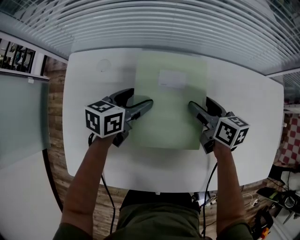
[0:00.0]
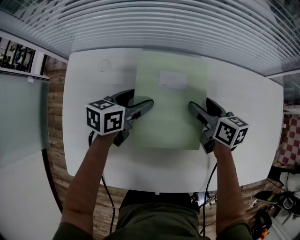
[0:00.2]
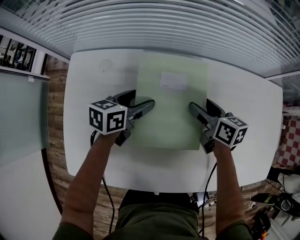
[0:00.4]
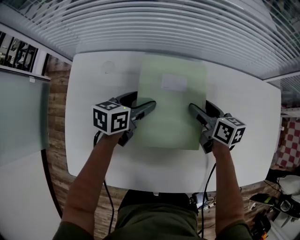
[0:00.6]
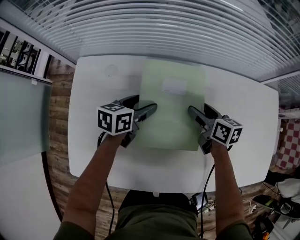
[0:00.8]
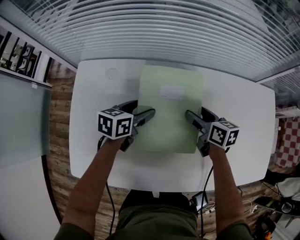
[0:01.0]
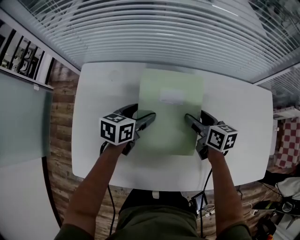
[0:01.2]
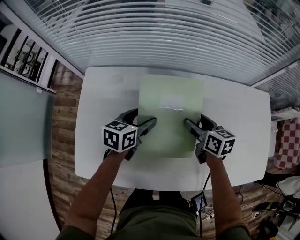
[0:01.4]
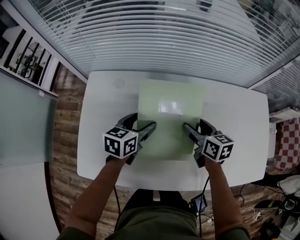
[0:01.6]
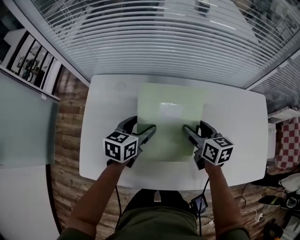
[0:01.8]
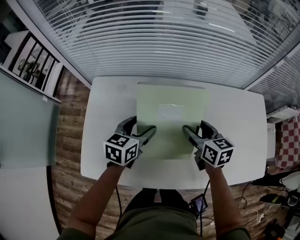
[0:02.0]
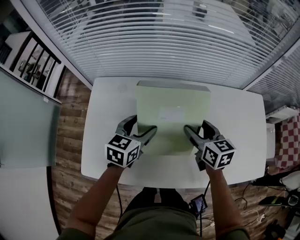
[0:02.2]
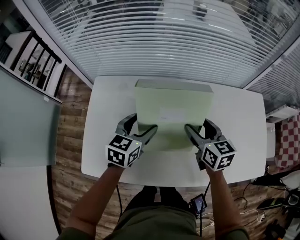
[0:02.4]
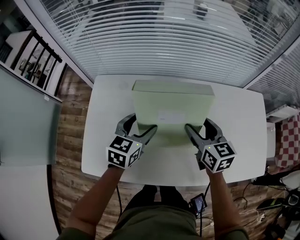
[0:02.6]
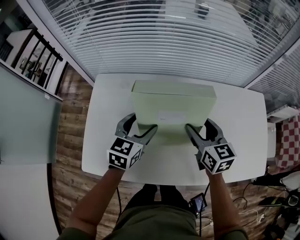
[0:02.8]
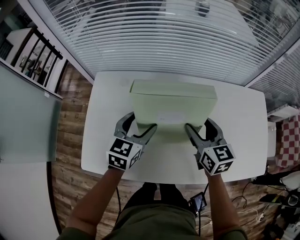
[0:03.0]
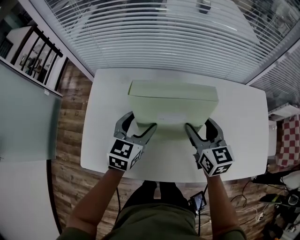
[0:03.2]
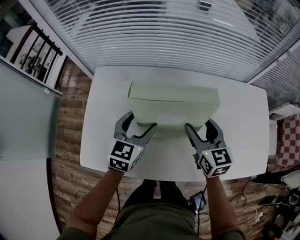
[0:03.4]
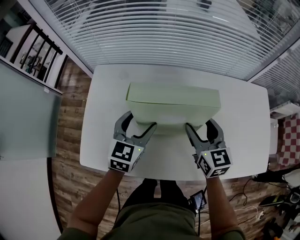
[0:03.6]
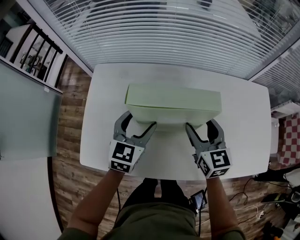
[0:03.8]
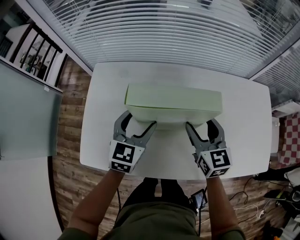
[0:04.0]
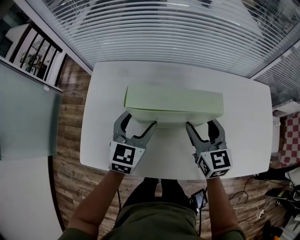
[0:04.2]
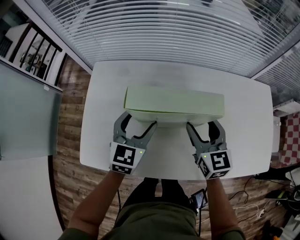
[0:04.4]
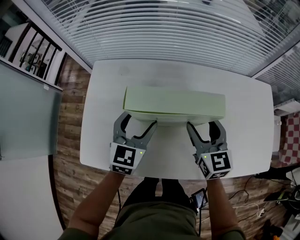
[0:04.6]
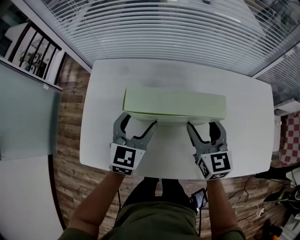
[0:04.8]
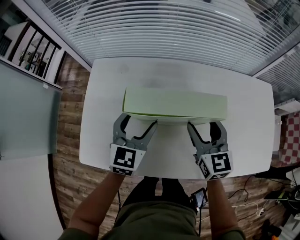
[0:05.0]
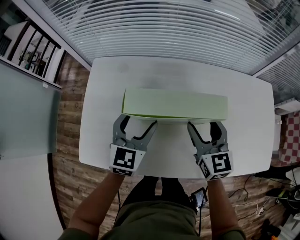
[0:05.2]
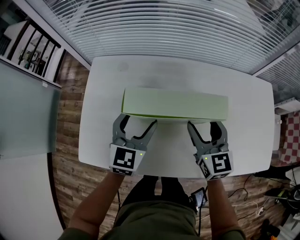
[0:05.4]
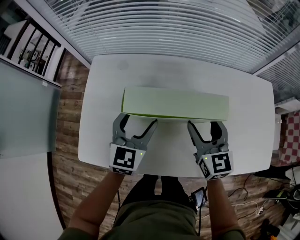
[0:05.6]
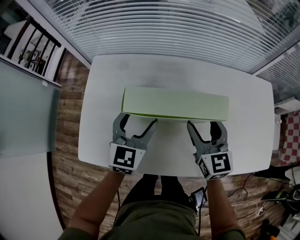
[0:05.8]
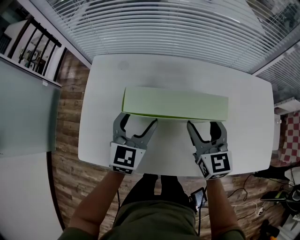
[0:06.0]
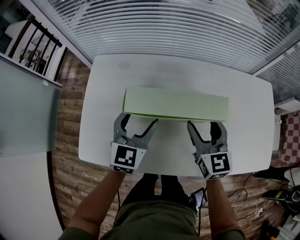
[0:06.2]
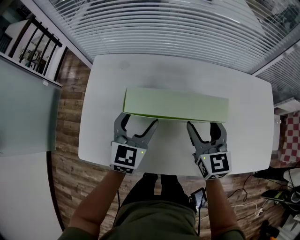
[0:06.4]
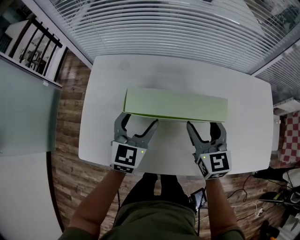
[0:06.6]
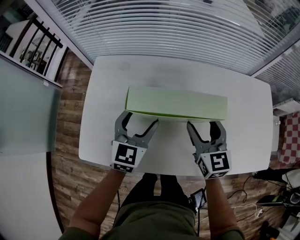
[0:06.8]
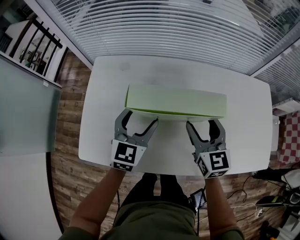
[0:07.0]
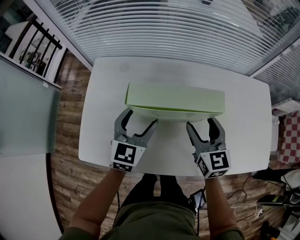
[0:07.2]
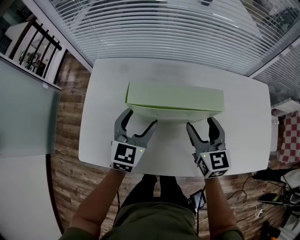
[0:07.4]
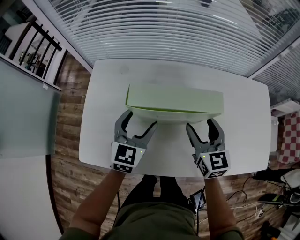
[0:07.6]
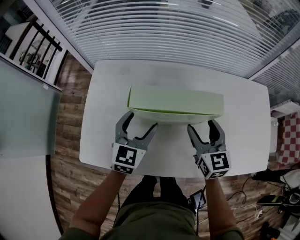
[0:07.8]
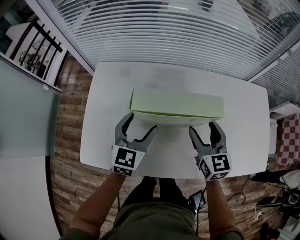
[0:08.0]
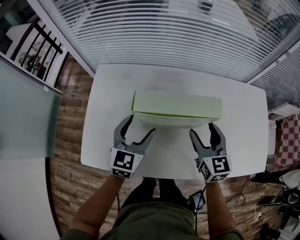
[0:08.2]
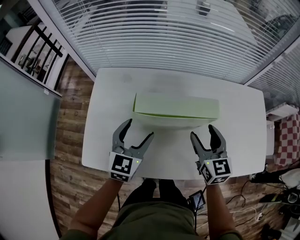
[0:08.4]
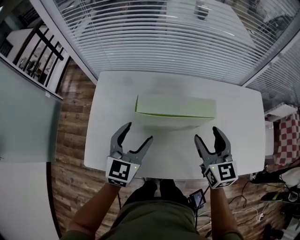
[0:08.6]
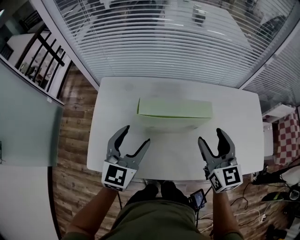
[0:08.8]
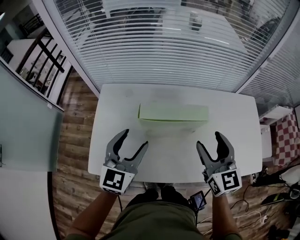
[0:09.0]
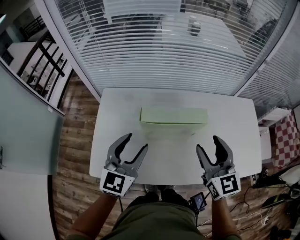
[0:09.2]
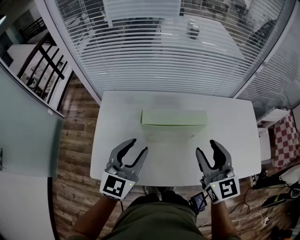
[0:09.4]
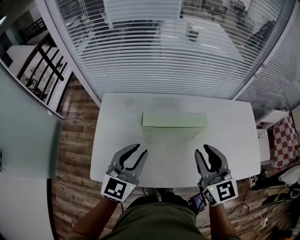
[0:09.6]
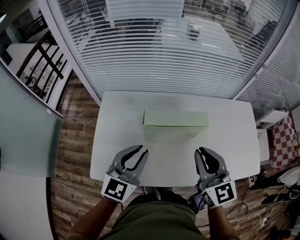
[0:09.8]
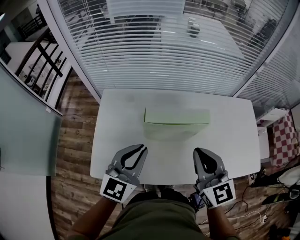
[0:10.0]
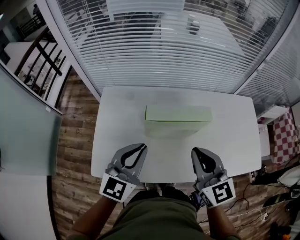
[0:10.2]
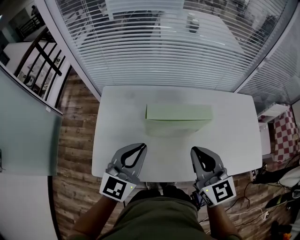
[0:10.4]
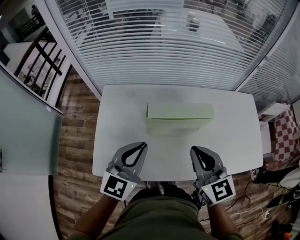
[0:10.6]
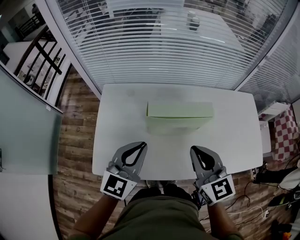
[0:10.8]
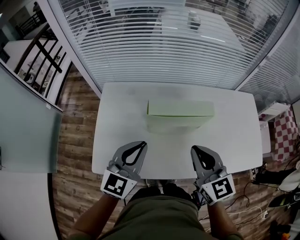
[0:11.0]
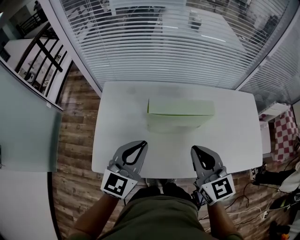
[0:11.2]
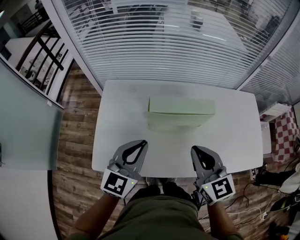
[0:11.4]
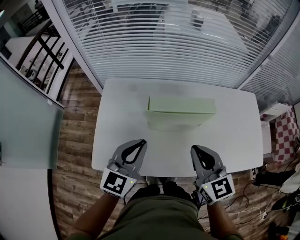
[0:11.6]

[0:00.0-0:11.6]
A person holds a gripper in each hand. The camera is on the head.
0:00.0 to 0:01.4: The left gripper shifts some 5 cm backward, while the right gripper shifts by about 5 cm.
0:01.4 to 0:02.8: Both grippers travel together upward and backward, approximately 10 cm. The right gripper rotates approximately 20 degrees. The left gripper changes its angle by approximately 20 degrees.
0:02.8 to 0:04.4: There are only small adjustments of the grippers.
0:04.4 to 0:05.8: Neither gripper changes place.
0:05.8 to 0:07.2: Both grippers stay about where they are.
0:07.2 to 0:08.8: The left gripper is displaced upward and backward by approximately 10 cm. Meanwhile the right gripper travels upward by about 10 cm.
0:08.8 to 0:10.2: The right gripper is displaced to the left and backward by approximately 10 cm, and closes up, while the left gripper is displaced upward by roughly 5 cm, and closes its fingers.
0:10.2 to 0:11.6: There are only small adjustments of the grippers.

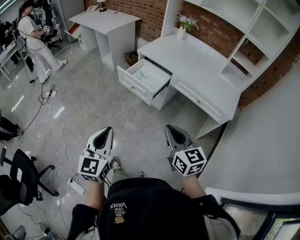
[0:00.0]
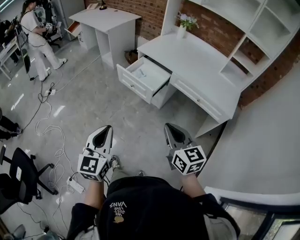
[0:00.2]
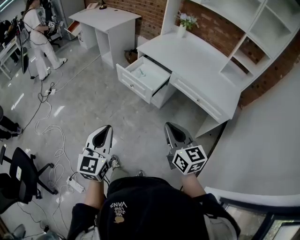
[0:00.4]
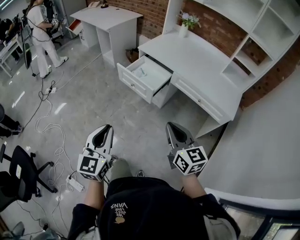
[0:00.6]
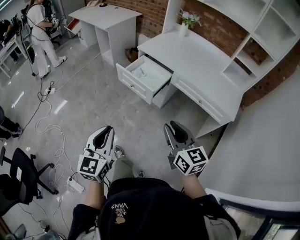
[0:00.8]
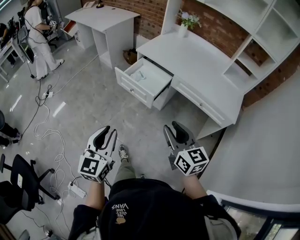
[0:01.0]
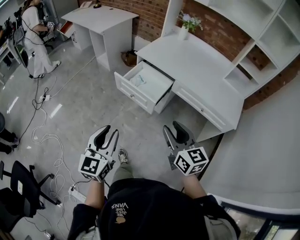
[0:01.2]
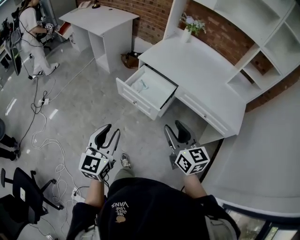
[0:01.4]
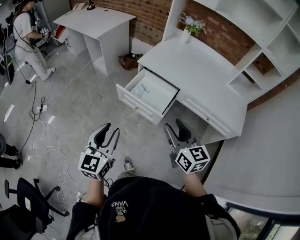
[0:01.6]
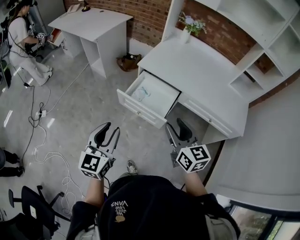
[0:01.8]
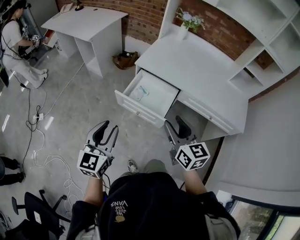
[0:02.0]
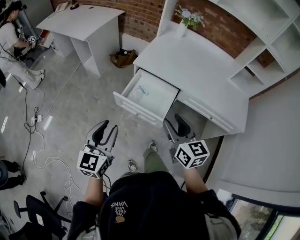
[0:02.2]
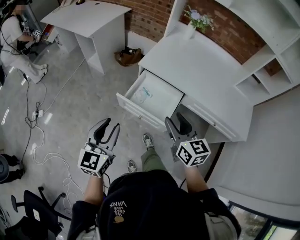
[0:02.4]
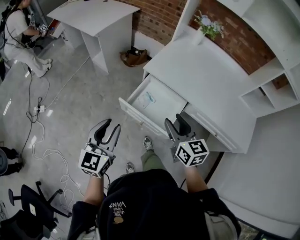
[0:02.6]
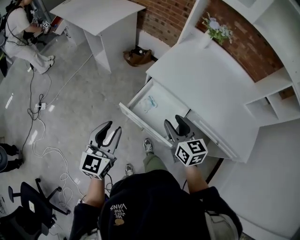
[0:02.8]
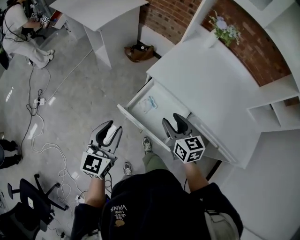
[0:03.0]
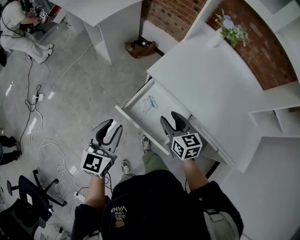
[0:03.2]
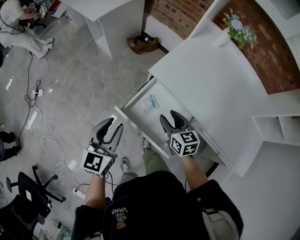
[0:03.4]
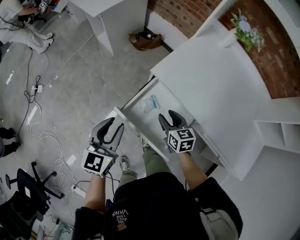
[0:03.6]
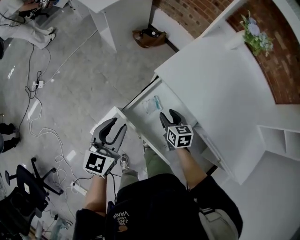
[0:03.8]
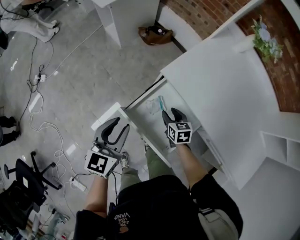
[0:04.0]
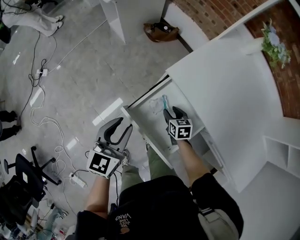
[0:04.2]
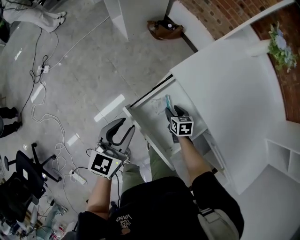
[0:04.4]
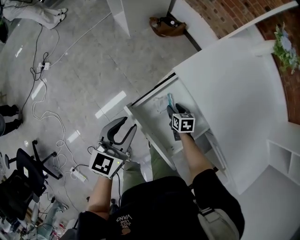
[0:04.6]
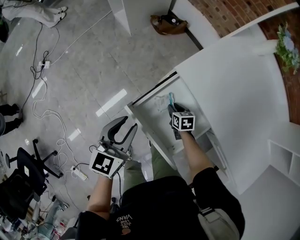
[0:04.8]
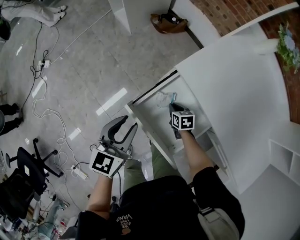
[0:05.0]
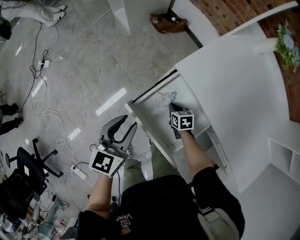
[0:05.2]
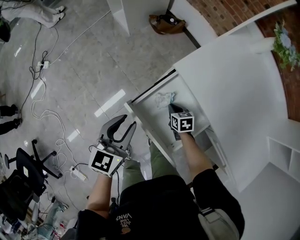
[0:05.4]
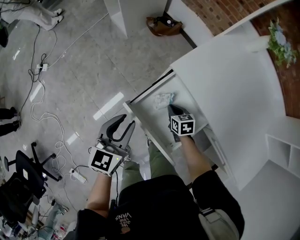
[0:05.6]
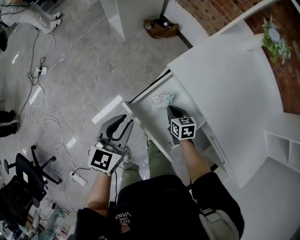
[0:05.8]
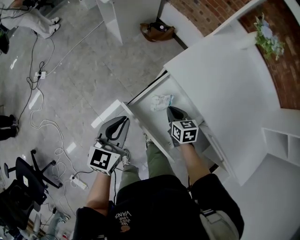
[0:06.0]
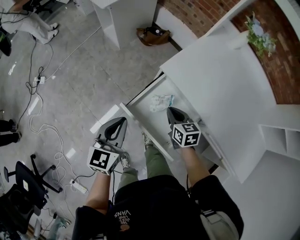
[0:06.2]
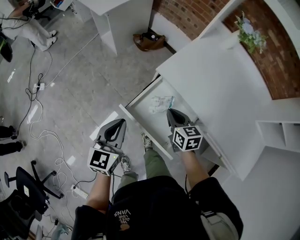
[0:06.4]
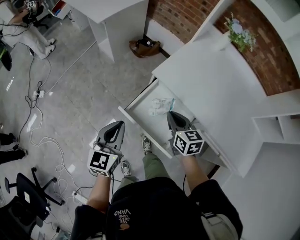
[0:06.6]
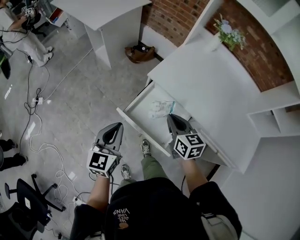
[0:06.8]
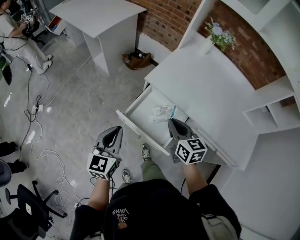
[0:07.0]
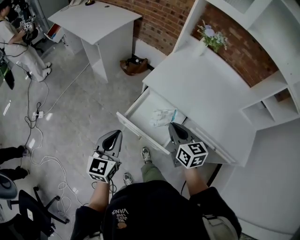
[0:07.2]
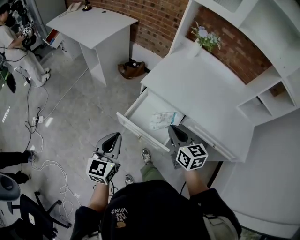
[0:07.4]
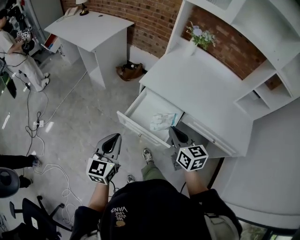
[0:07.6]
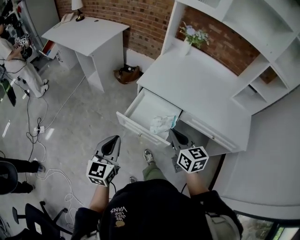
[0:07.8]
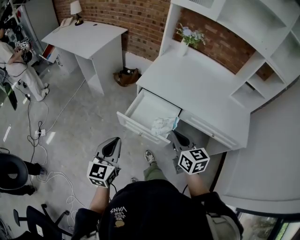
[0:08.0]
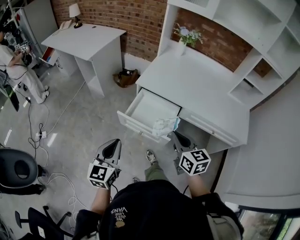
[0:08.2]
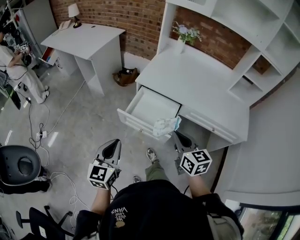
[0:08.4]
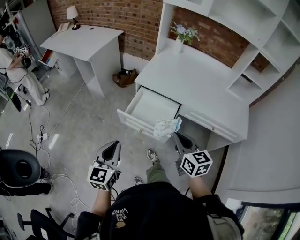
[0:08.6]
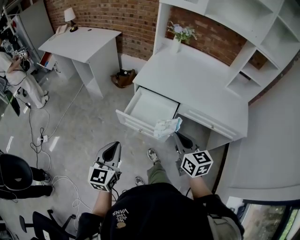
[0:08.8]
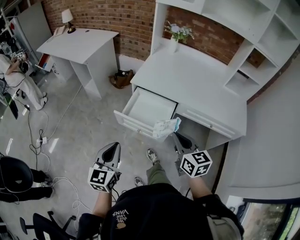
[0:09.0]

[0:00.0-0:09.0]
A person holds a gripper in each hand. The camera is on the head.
0:00.0 to 0:01.6: Both grippers move forward, some 25 cm. The left gripper opens. The right gripper opens.
0:01.6 to 0:03.0: The right gripper moves forward and downward, roughly 35 cm; the left gripper shifts about 25 cm forward.
0:03.0 to 0:04.4: The right gripper travels downward and forward by roughly 35 cm, and changes its angle by some 30 degrees; the left gripper is displaced downward and forward by about 15 cm.
0:04.4 to 0:06.0: The right gripper travels upward by about 10 cm, and closes up. Meanwhile the left gripper closes.
0:06.0 to 0:07.6: The right gripper is displaced upward and backward by about 35 cm, and changes its angle by about 30 degrees. The left gripper moves backward and upward, some 20 cm.
0:07.6 to 0:09.0: Both grippers travel together backward, about 10 cm.

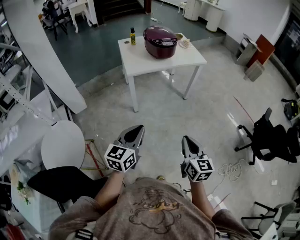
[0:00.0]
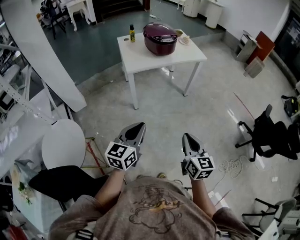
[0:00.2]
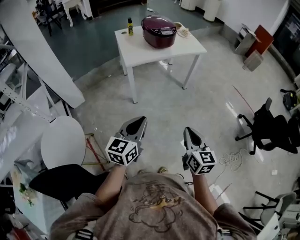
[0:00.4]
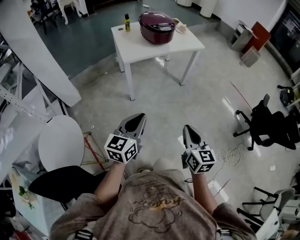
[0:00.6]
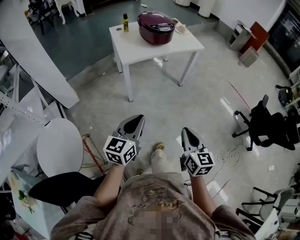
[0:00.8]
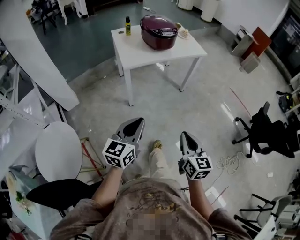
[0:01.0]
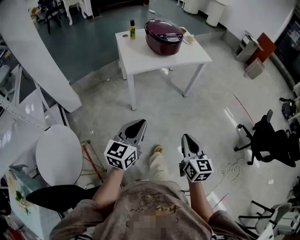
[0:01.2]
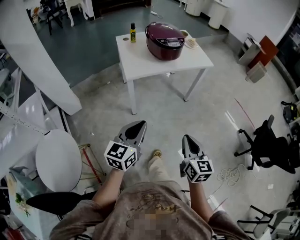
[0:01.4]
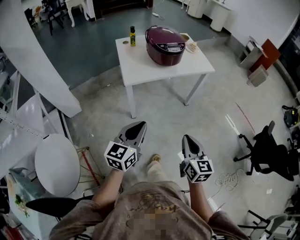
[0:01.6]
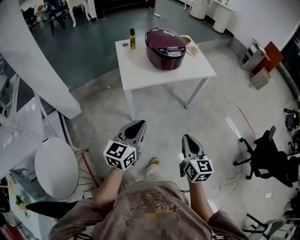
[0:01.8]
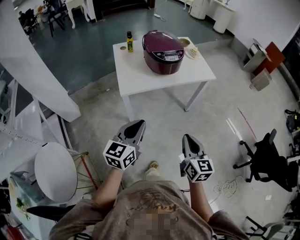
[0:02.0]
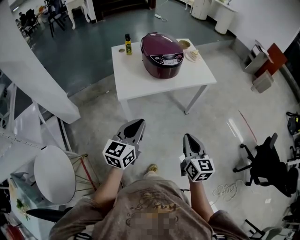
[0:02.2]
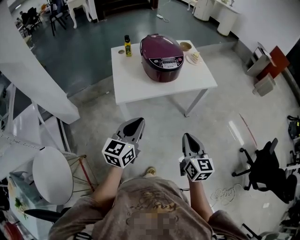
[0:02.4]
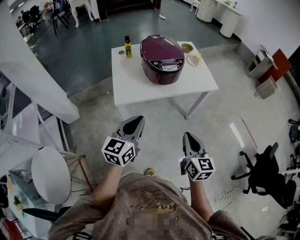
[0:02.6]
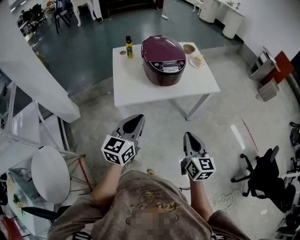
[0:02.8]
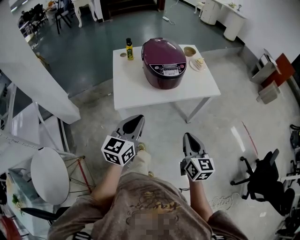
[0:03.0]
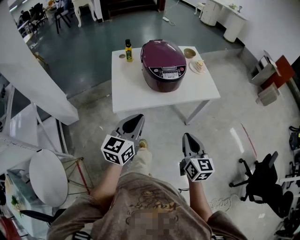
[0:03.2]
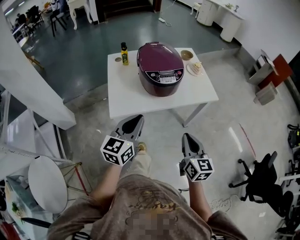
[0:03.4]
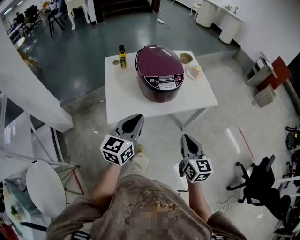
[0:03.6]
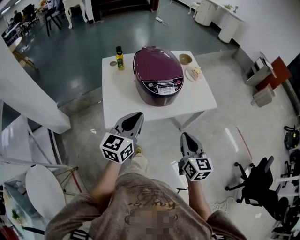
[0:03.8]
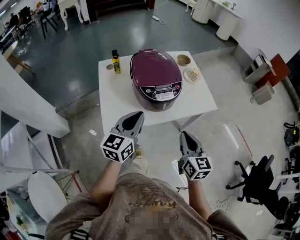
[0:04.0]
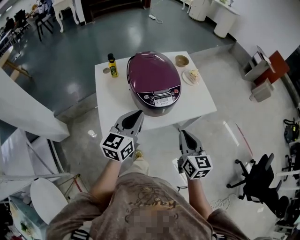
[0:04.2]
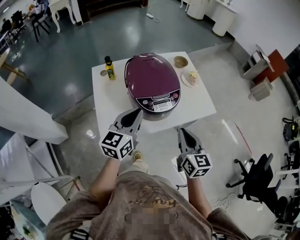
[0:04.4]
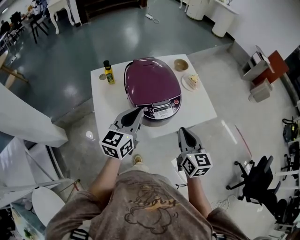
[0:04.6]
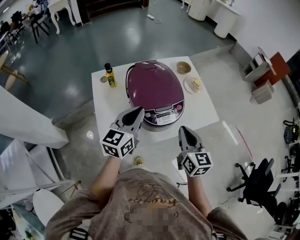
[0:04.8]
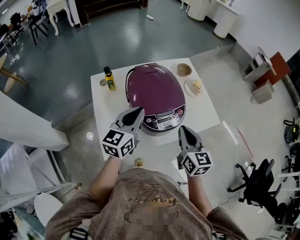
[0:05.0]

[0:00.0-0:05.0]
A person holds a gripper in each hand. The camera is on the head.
0:00.0 to 0:01.6: The two grippers go roughly 20 cm forward.
0:01.6 to 0:03.4: The two grippers go about 30 cm forward.
0:03.4 to 0:05.0: The grippers both shift forward by roughly 25 cm.
